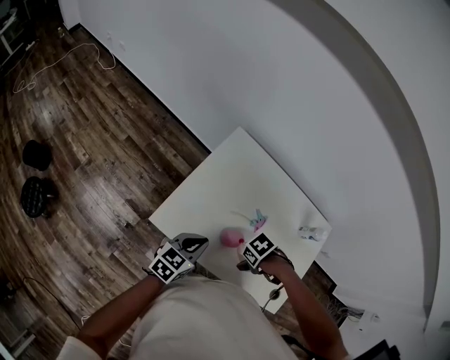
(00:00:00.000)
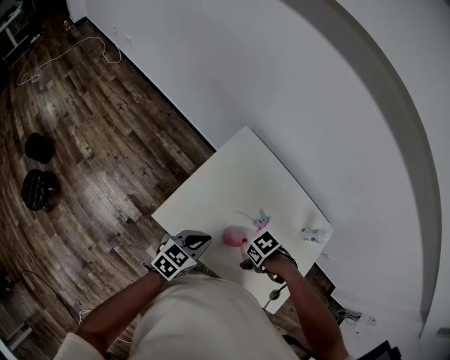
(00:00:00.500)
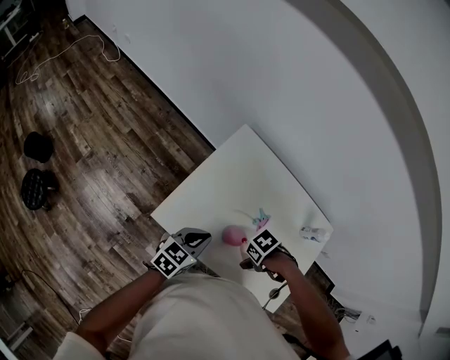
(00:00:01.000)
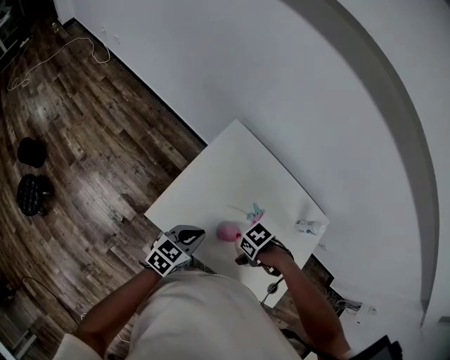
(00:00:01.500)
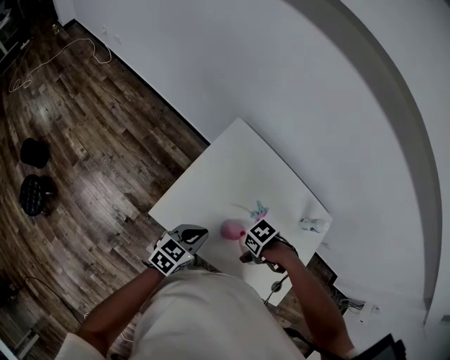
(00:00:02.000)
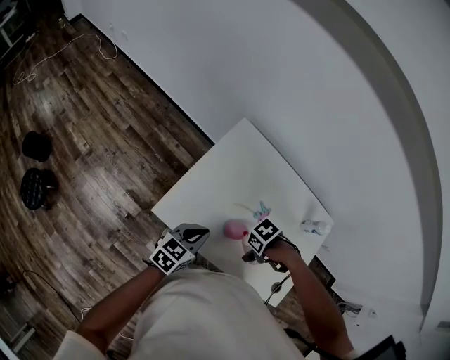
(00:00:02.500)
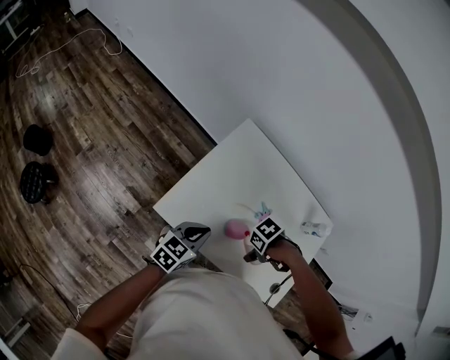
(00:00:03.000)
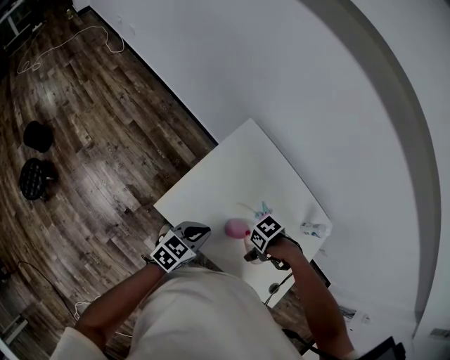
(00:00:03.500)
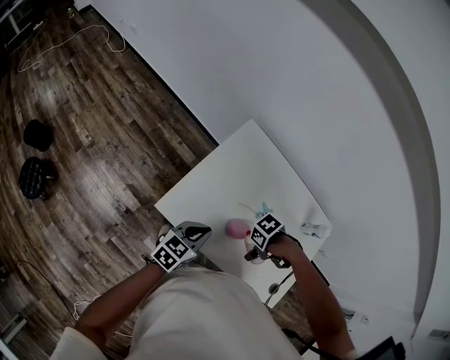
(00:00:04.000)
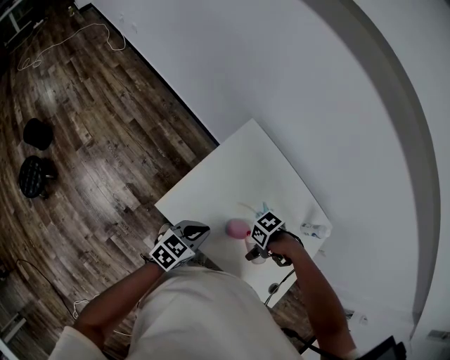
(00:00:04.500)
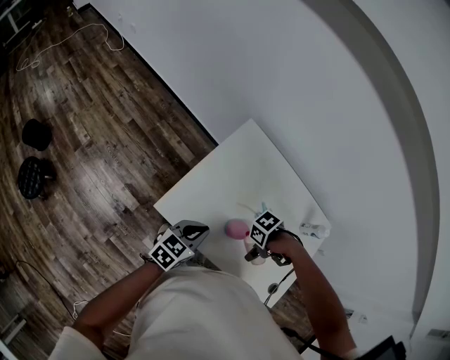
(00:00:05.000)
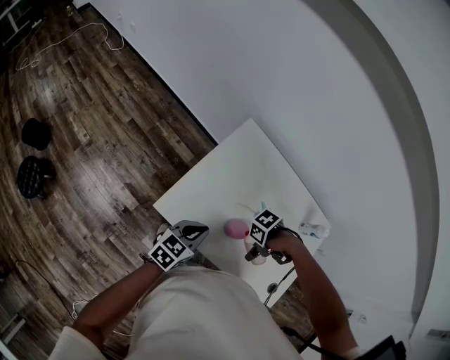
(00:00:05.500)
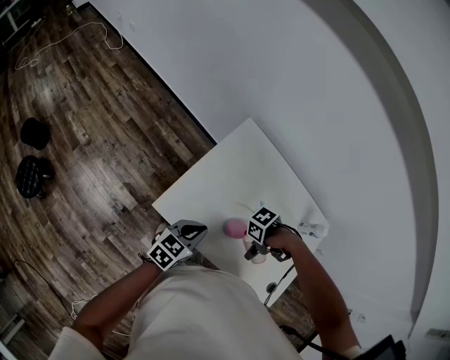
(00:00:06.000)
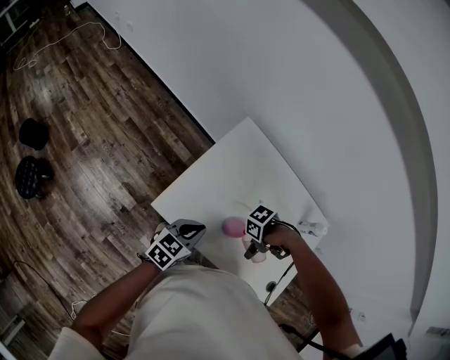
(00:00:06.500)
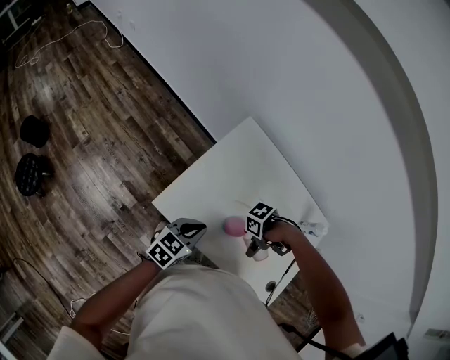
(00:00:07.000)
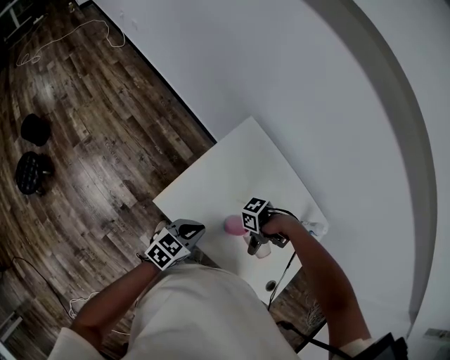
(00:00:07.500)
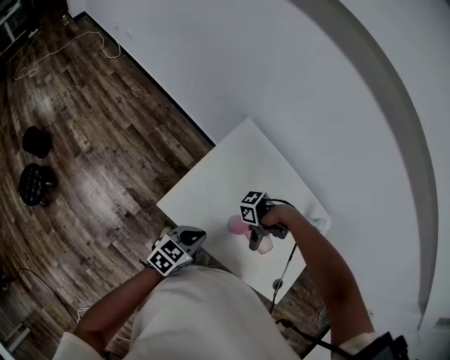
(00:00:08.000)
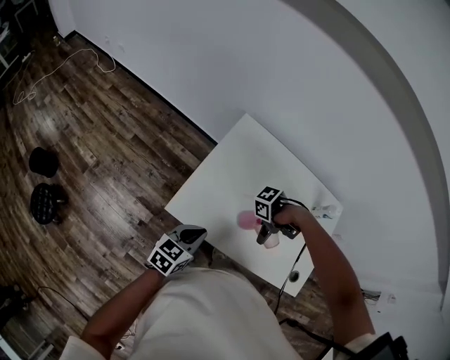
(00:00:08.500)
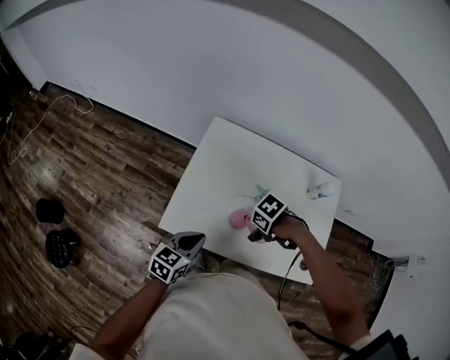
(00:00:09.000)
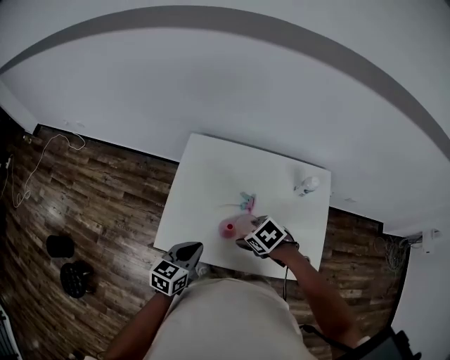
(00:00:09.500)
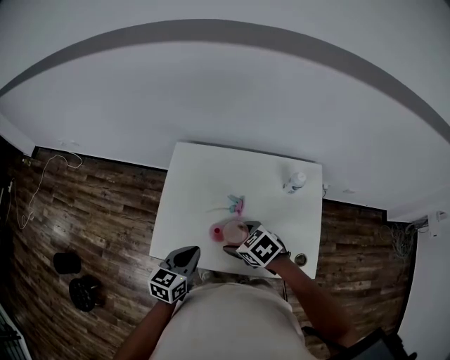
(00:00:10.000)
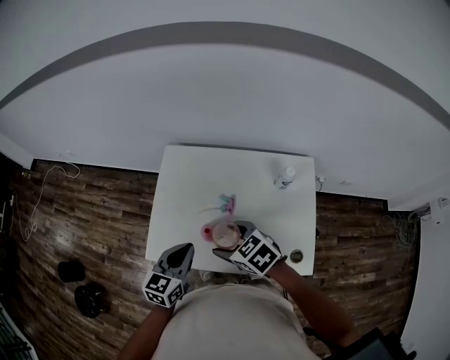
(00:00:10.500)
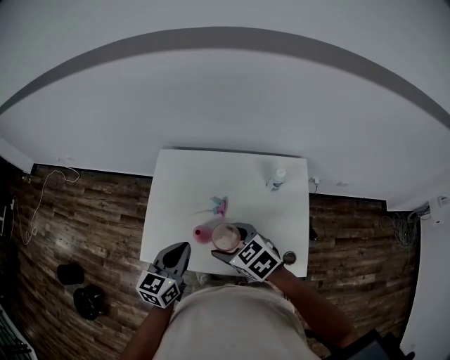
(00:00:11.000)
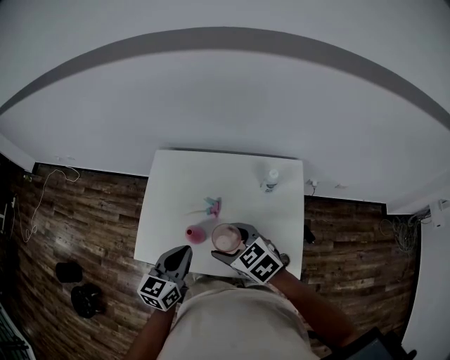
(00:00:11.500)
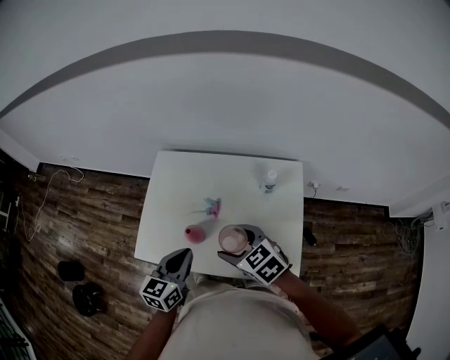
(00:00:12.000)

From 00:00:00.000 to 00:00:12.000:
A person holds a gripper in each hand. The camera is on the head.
From 00:00:00.000 to 00:00:04.000: There are only small adjustments of the grippers.
From 00:00:04.000 to 00:00:06.000: The grippers stay close to where they were, moving slightly.
From 00:00:06.000 to 00:00:08.000: There are only small adjustments of the grippers.
From 00:00:08.000 to 00:00:10.000: The left gripper changes place by roughly 15 cm; the right gripper heads upward, covering approximately 5 cm, and rotates some 90 degrees.
From 00:00:10.000 to 00:00:12.000: The left gripper is displaced to the right by about 10 cm. The right gripper moves to the right, upward and backward, approximately 15 cm.

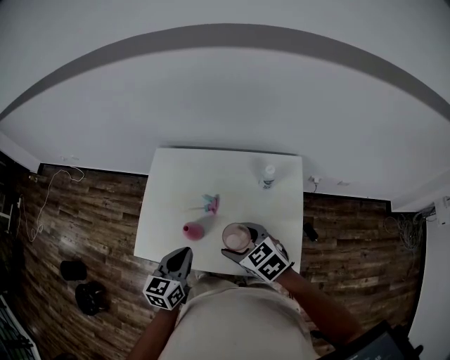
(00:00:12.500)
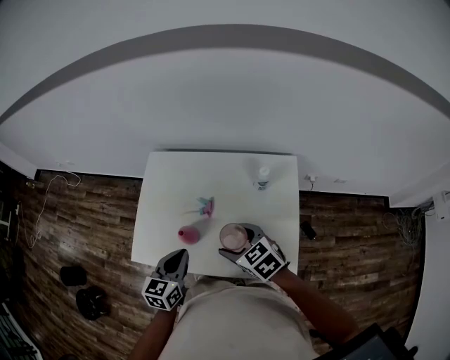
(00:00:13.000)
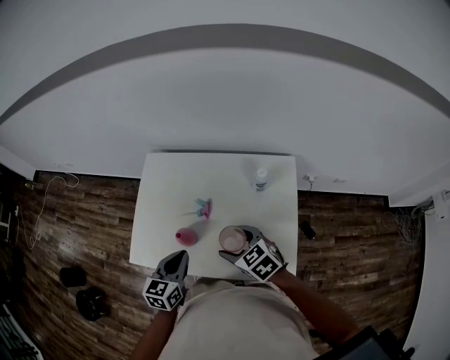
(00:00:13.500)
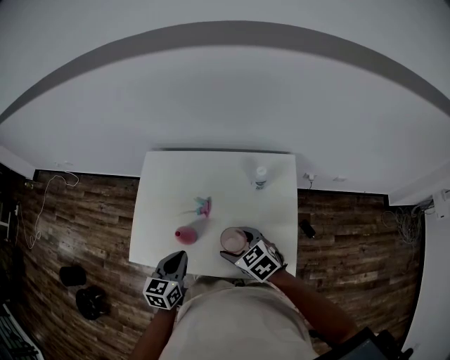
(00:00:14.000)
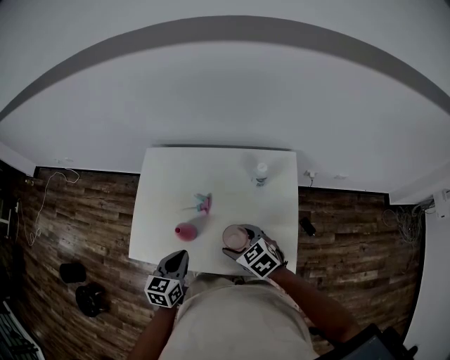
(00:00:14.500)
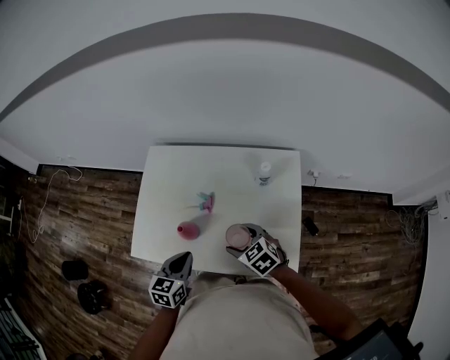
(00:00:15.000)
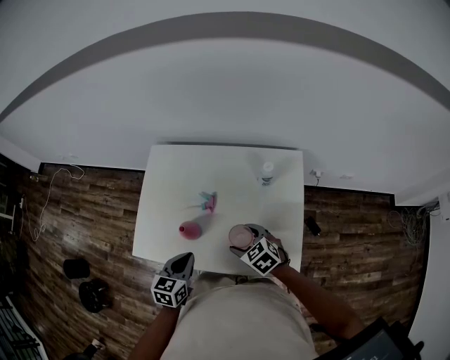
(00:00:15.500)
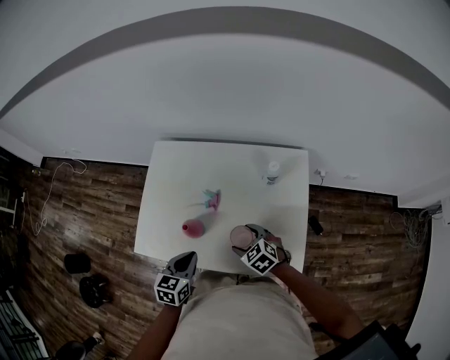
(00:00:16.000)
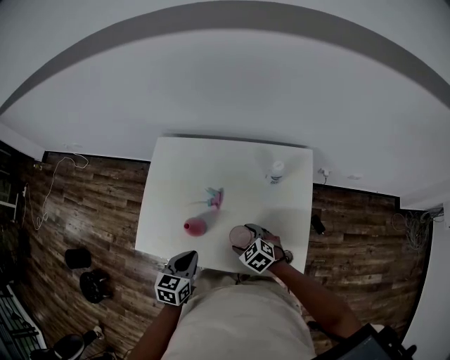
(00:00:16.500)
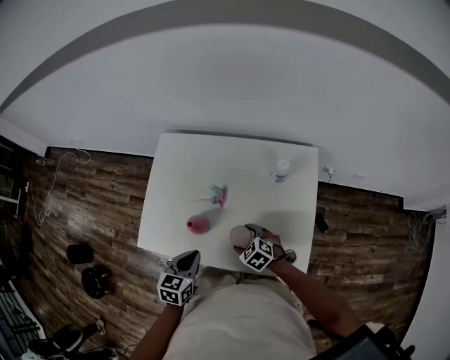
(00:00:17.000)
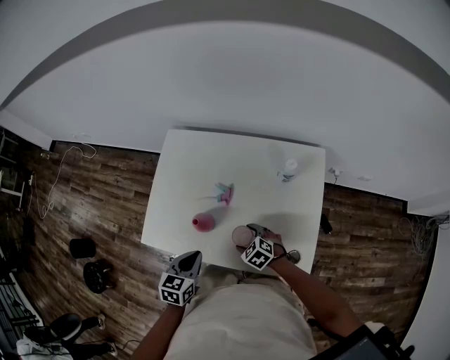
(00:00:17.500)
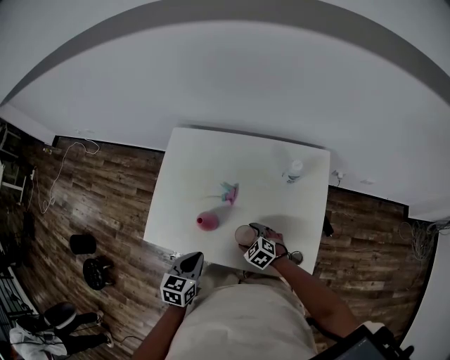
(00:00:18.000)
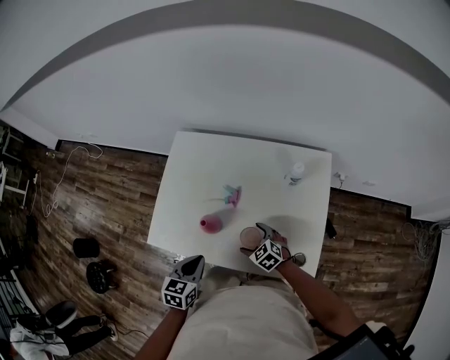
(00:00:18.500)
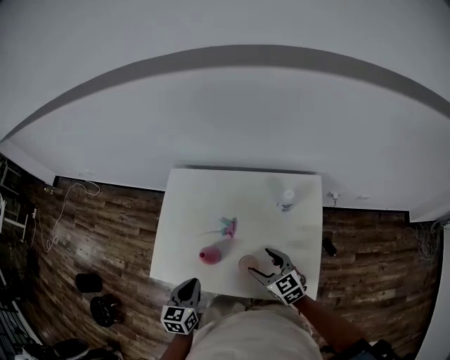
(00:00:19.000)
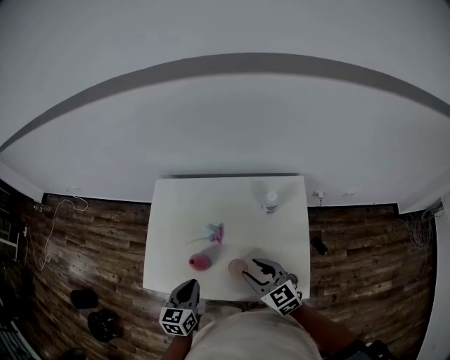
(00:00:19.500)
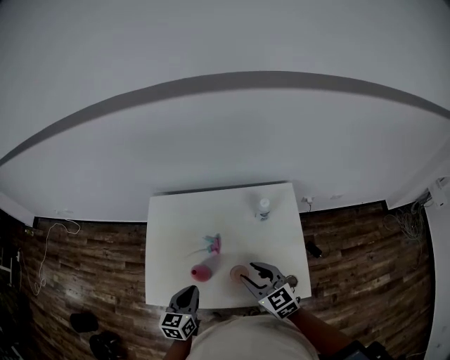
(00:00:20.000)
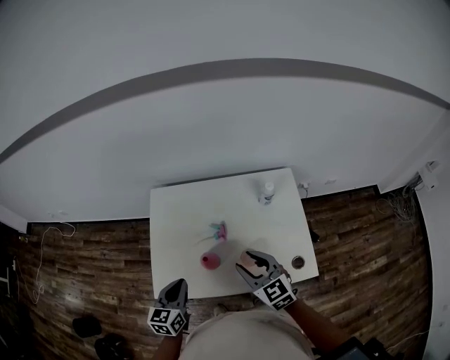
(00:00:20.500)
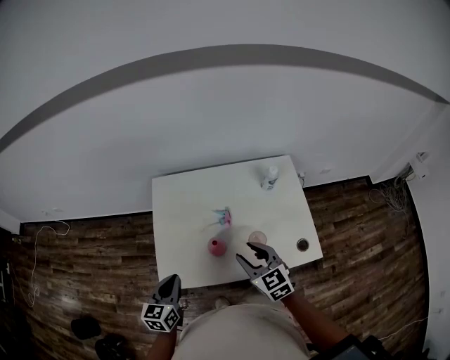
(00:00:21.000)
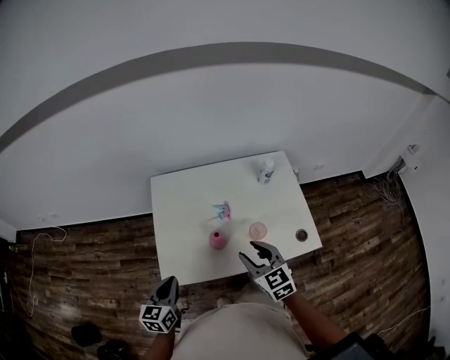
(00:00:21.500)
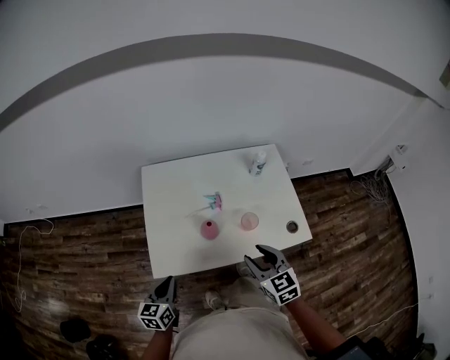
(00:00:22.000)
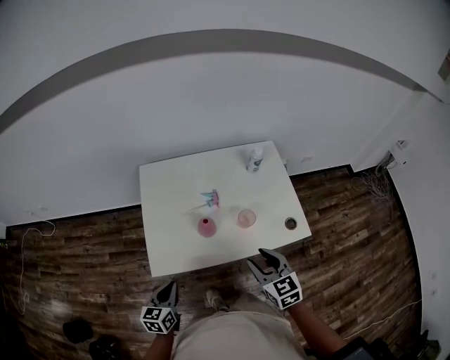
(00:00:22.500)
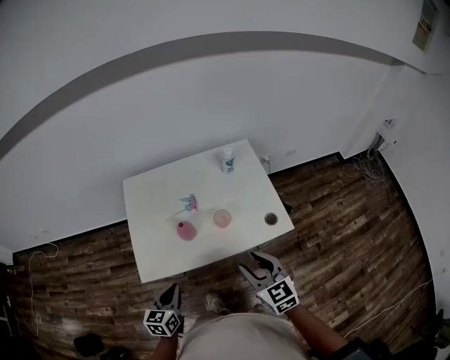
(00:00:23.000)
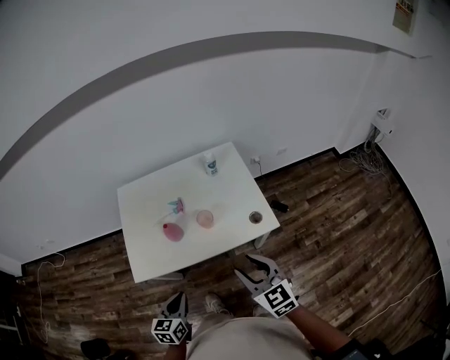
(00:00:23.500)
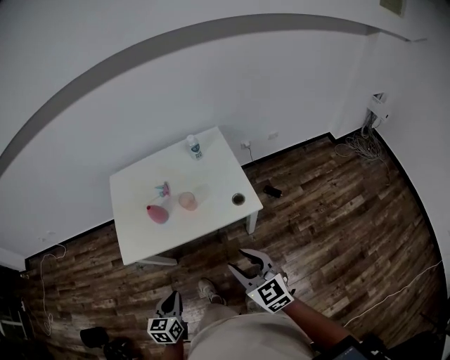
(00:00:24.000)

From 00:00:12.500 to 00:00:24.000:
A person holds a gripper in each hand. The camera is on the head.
From 00:00:12.500 to 00:00:14.500: The two grippers go approximately 5 cm downward.
From 00:00:14.500 to 00:00:16.500: The right gripper moves downward, approximately 10 cm.
From 00:00:16.500 to 00:00:18.500: The right gripper moves about 5 cm.
From 00:00:18.500 to 00:00:20.000: The right gripper is displaced upward by some 25 cm, rotates approximately 30 degrees, and closes. Meanwhile the left gripper moves upward and forward, roughly 10 cm.
From 00:00:20.000 to 00:00:22.000: The right gripper goes approximately 20 cm backward and to the left, and rotates roughly 20 degrees. The left gripper heads to the left and backward, covering about 25 cm.
From 00:00:22.000 to 00:00:24.000: Both grippers move to the right and backward, approximately 30 cm.

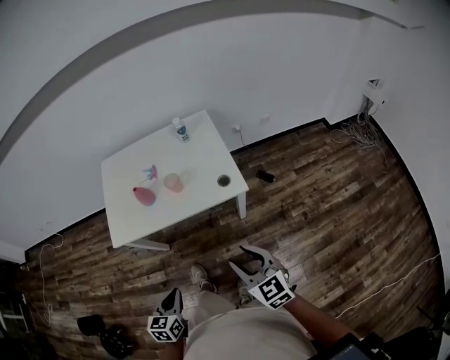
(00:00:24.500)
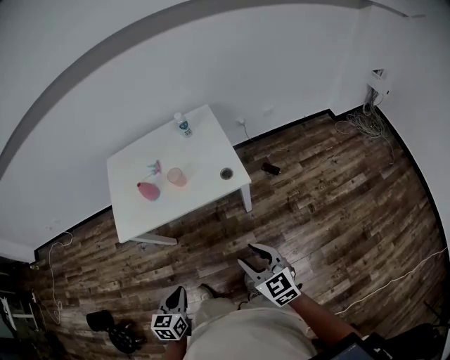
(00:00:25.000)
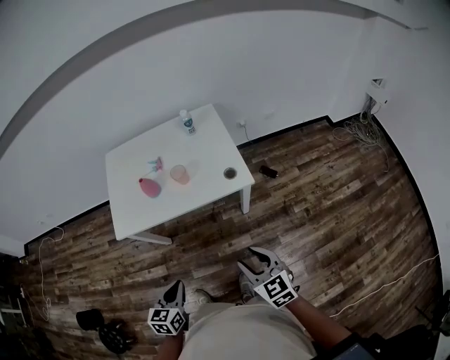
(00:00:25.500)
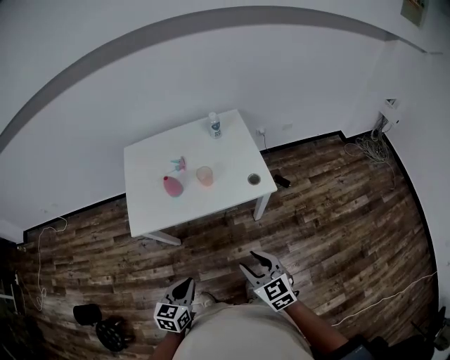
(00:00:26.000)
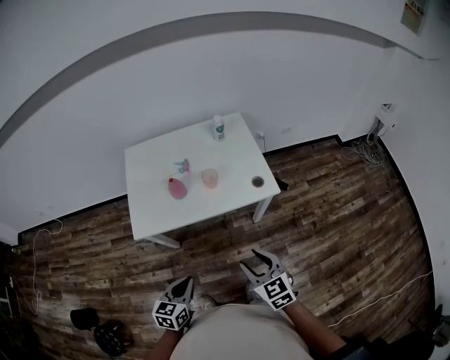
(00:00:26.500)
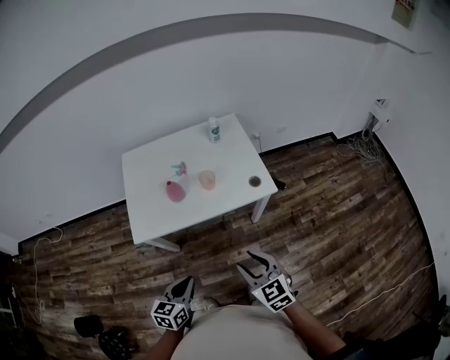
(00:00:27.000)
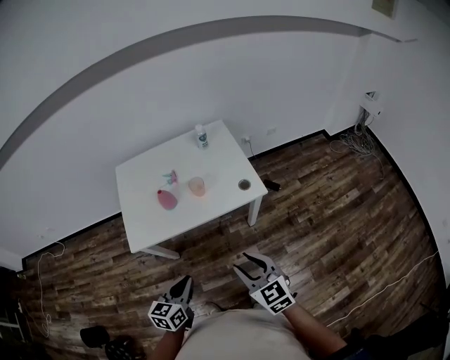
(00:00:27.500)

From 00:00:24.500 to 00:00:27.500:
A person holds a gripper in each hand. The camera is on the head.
From 00:00:24.500 to 00:00:26.000: The left gripper heads to the left, covering roughly 5 cm. Meanwhile the right gripper moves to the left, some 10 cm.
From 00:00:26.000 to 00:00:27.500: The right gripper shifts roughly 5 cm upward.
